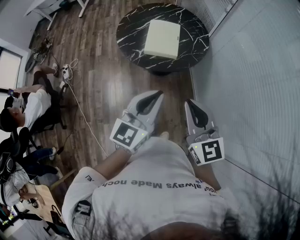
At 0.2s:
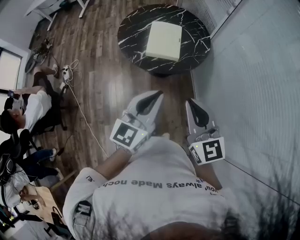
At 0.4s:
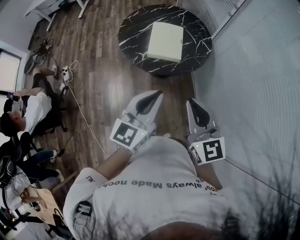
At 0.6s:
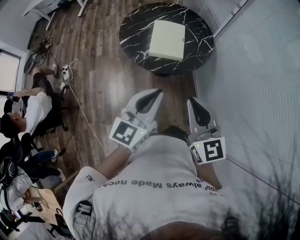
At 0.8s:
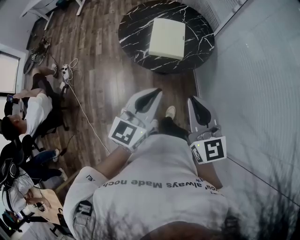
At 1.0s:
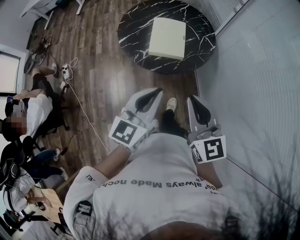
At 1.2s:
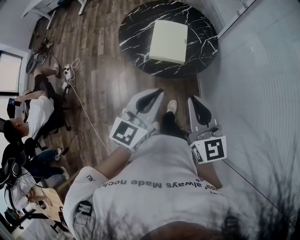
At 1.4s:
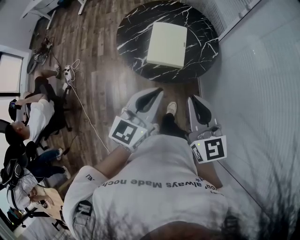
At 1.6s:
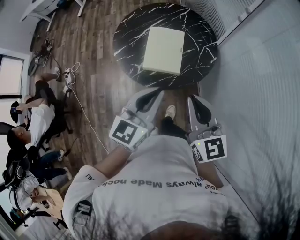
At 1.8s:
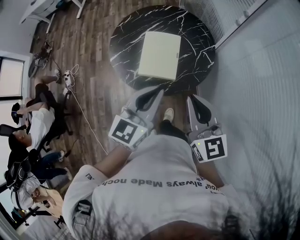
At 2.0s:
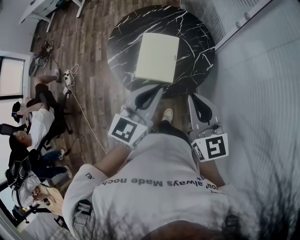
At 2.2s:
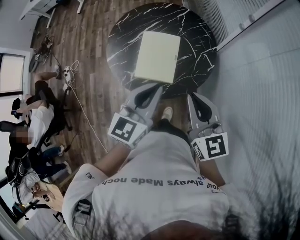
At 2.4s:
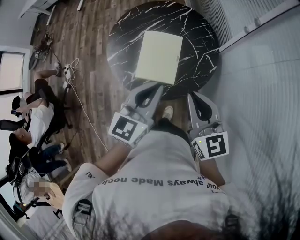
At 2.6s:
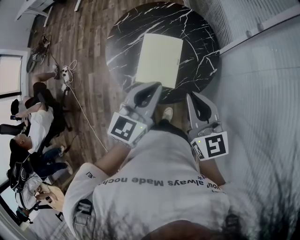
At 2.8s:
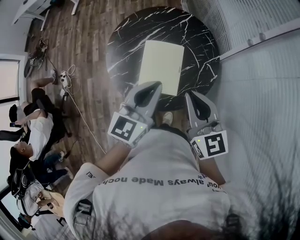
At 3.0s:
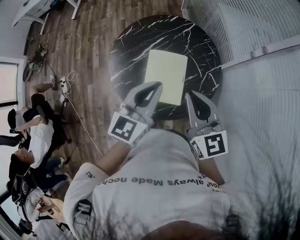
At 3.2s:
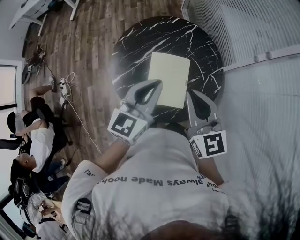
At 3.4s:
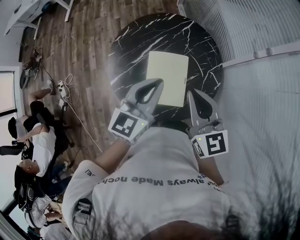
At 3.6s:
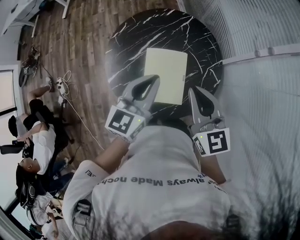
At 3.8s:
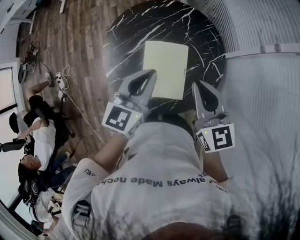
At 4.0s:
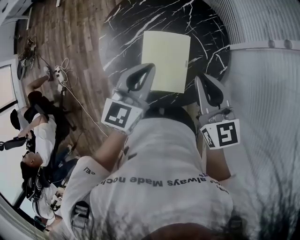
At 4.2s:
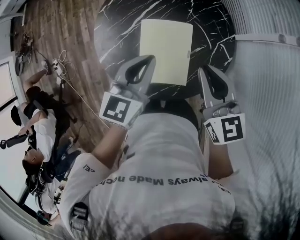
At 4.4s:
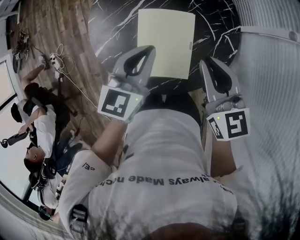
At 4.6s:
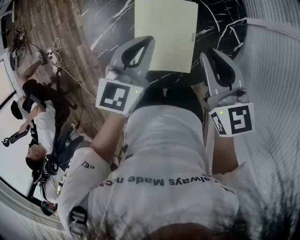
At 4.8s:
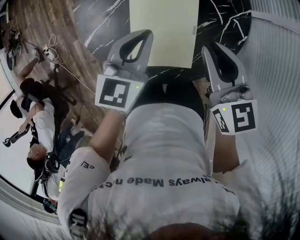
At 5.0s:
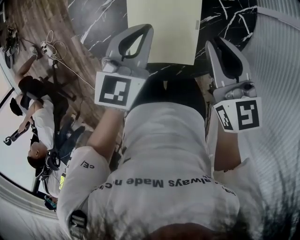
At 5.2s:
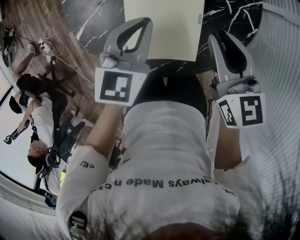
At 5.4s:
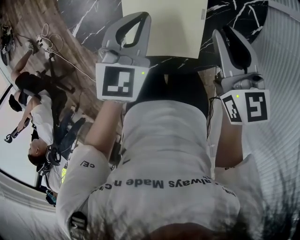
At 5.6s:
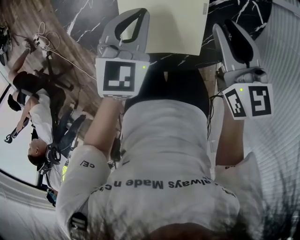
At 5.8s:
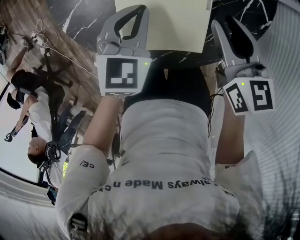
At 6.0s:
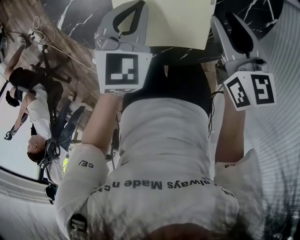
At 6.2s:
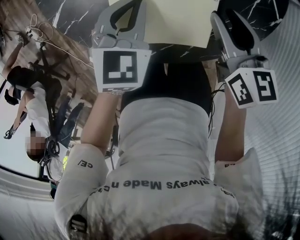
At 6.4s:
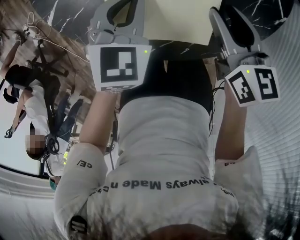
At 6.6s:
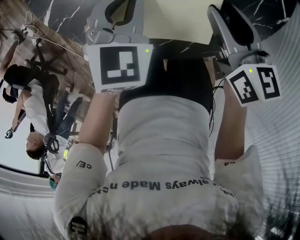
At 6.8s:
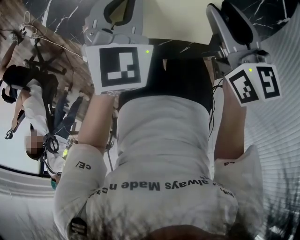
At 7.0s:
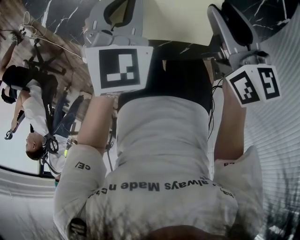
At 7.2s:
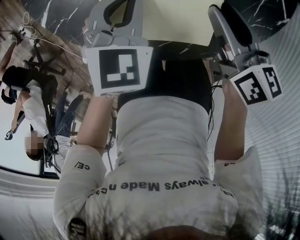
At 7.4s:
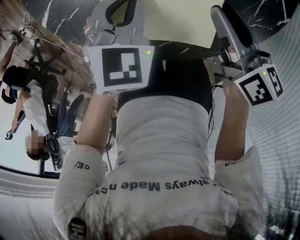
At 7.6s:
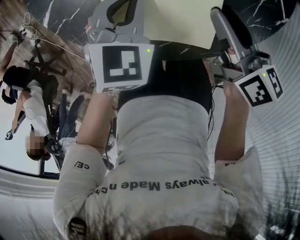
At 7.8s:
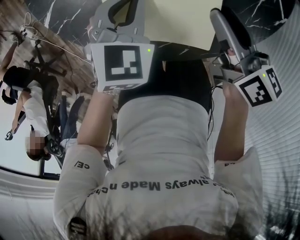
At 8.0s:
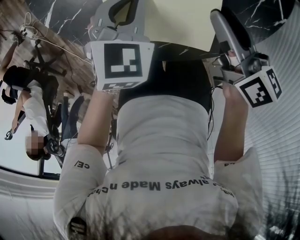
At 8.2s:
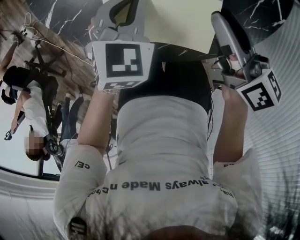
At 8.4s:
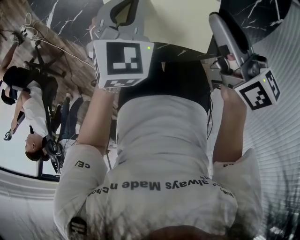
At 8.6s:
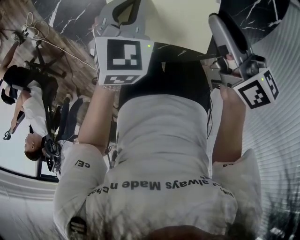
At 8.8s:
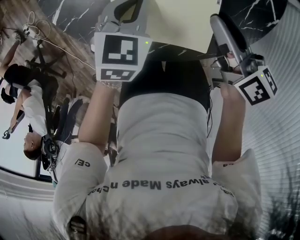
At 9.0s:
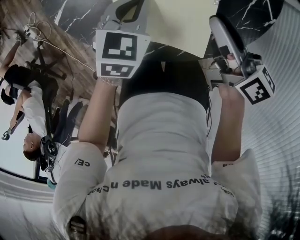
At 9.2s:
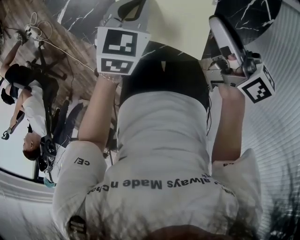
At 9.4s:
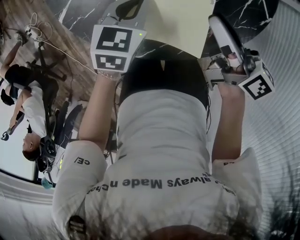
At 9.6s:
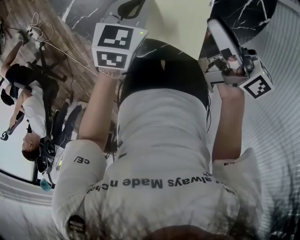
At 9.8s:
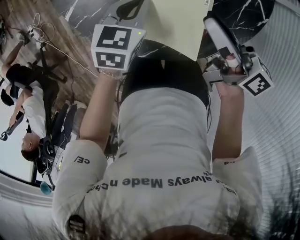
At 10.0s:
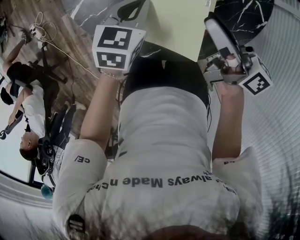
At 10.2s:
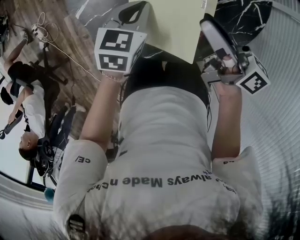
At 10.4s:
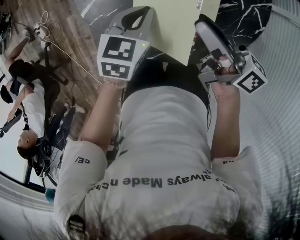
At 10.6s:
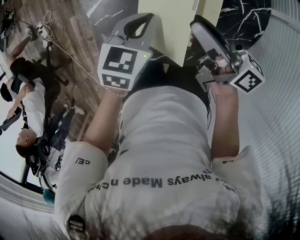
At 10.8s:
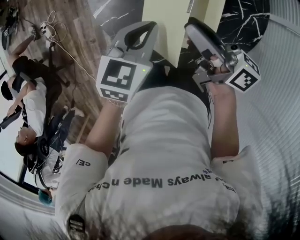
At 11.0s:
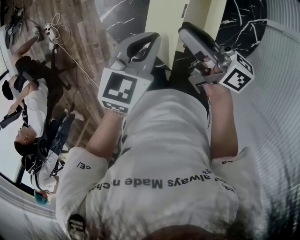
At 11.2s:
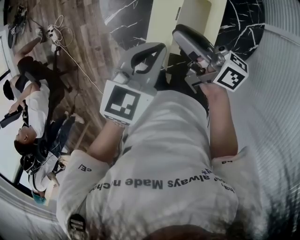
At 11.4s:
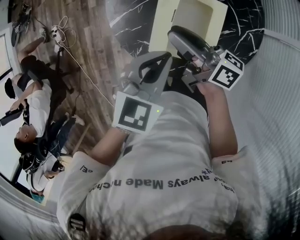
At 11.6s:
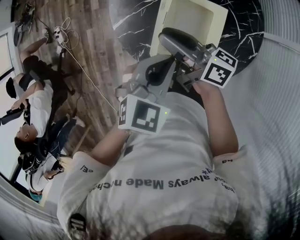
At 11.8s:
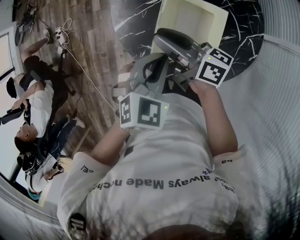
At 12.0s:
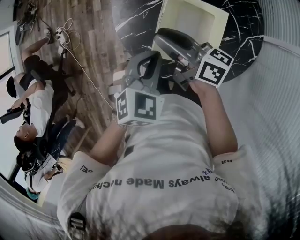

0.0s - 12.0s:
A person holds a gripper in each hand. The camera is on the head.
0.0s - 1.6s: Both grippers move forward, roughly 20 cm.
1.6s - 3.0s: The grippers both shift forward by approximately 25 cm.
3.0s - 4.4s: The grippers both shift downward and forward by about 20 cm.
4.4s - 6.0s: Both grippers move downward, roughly 25 cm. The right gripper opens; the left gripper changes its angle by some 30 degrees.
6.0s - 7.6s: The right gripper turns by about 30 degrees.
7.6s - 9.0s: The grippers move only a little.
9.0s - 10.4s: The left gripper moves upward, roughly 10 cm, while the right gripper moves upward and to the left, about 15 cm, and rotates some 20 degrees.
10.4s - 12.0s: The left gripper travels upward, backward and to the left by roughly 15 cm, and rotates some 20 degrees, while the right gripper moves to the left, roughly 15 cm.

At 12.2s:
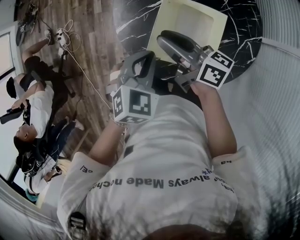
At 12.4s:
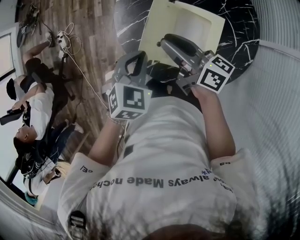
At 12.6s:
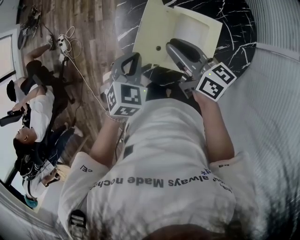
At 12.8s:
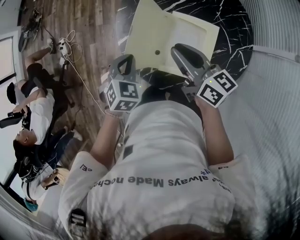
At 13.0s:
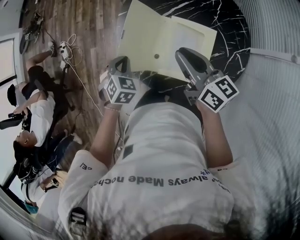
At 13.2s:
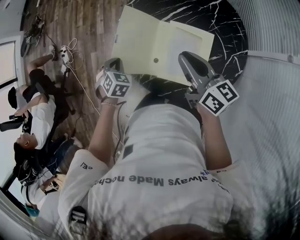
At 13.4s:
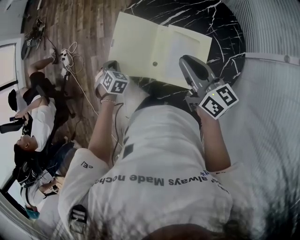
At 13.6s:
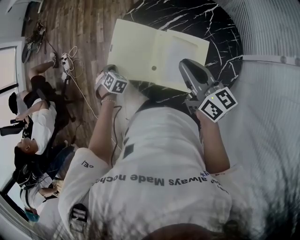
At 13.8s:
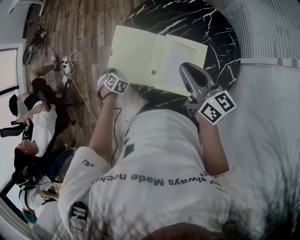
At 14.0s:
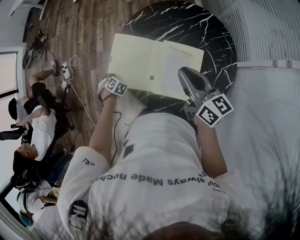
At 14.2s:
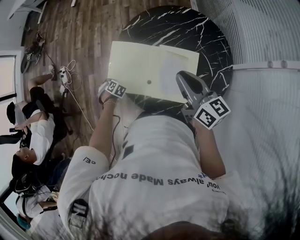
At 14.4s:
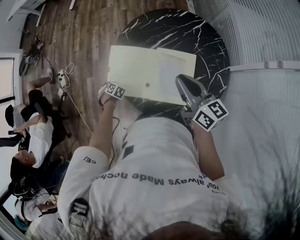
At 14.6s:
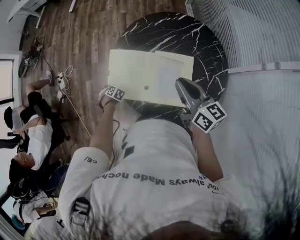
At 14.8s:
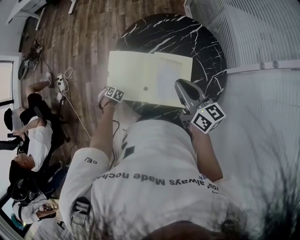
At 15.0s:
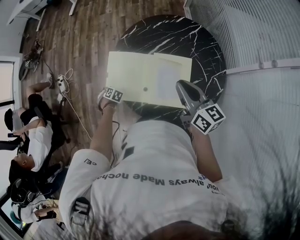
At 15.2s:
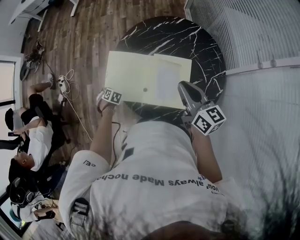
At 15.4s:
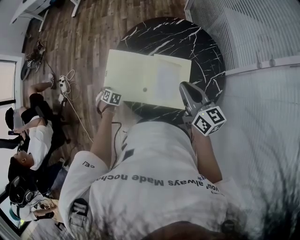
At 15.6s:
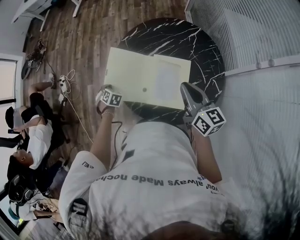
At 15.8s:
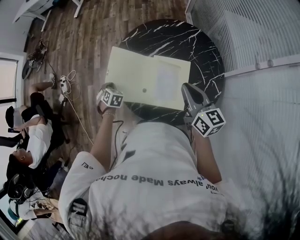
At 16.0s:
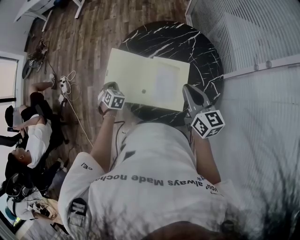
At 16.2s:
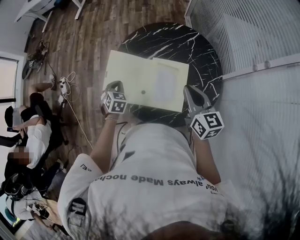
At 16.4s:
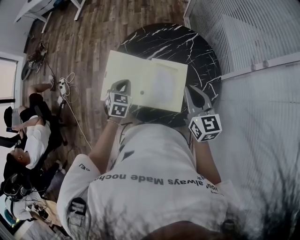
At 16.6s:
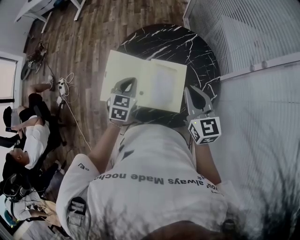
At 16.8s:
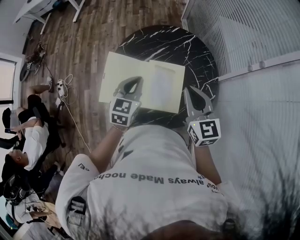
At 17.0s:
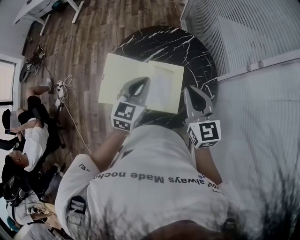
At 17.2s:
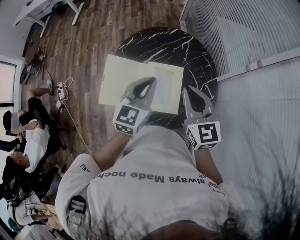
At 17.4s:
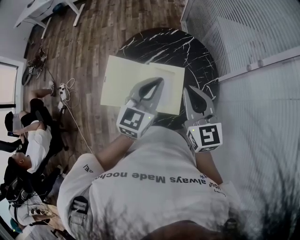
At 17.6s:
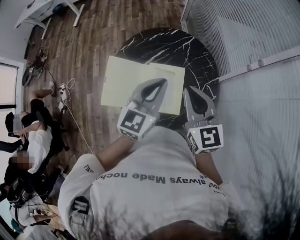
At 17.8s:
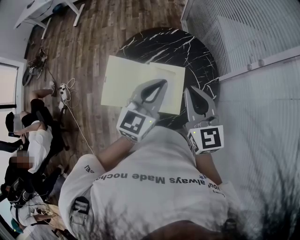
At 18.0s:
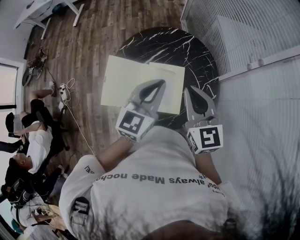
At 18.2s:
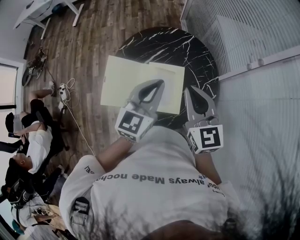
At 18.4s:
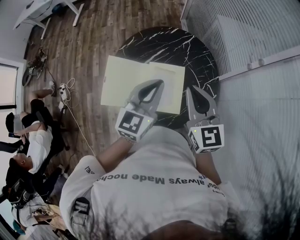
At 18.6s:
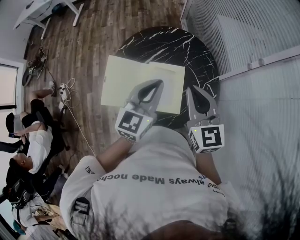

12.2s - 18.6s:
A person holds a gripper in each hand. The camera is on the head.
12.2s - 13.8s: The right gripper moves upward and to the right, approximately 15 cm, and changes its angle by roughly 30 degrees. The left gripper moves downward, to the left and forward, some 30 cm, and turns by about 40 degrees.
13.8s - 15.4s: The right gripper changes place by approximately 5 cm. Meanwhile the left gripper reaches roughly 10 cm downward, then returns.
15.4s - 17.0s: The left gripper moves upward, approximately 35 cm, and tilts its fingers some 50 degrees upward; the right gripper goes roughly 10 cm upward, and rotates about 30 degrees.
17.0s - 18.6s: The left gripper travels upward by approximately 5 cm.

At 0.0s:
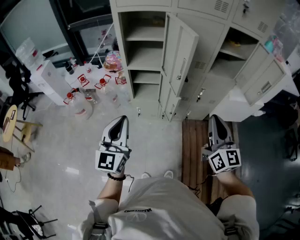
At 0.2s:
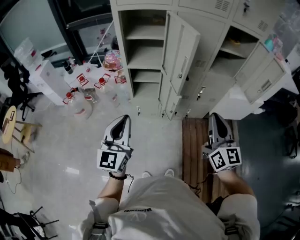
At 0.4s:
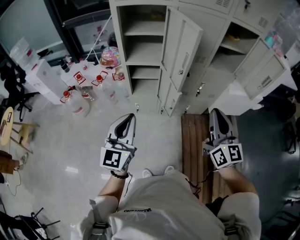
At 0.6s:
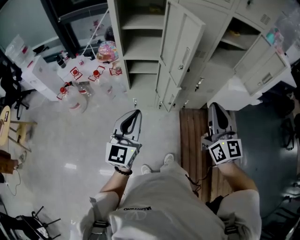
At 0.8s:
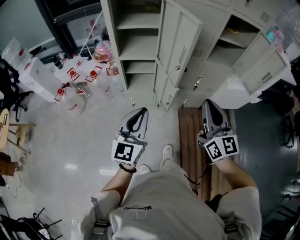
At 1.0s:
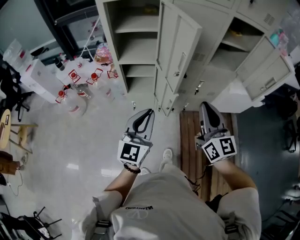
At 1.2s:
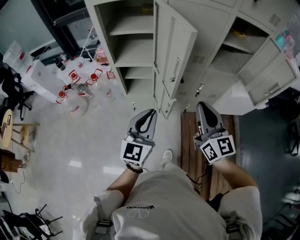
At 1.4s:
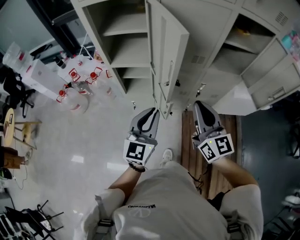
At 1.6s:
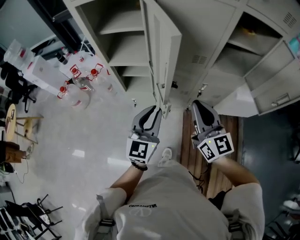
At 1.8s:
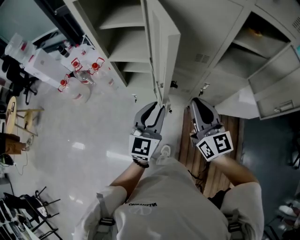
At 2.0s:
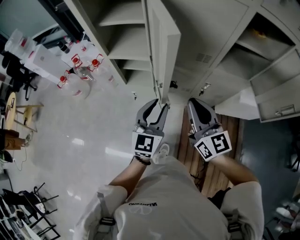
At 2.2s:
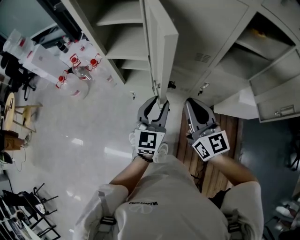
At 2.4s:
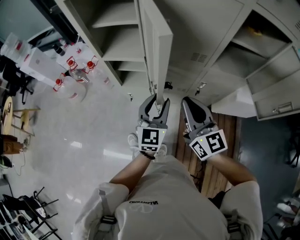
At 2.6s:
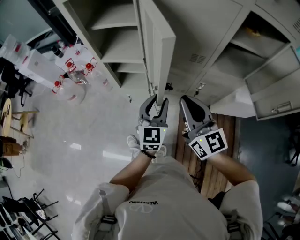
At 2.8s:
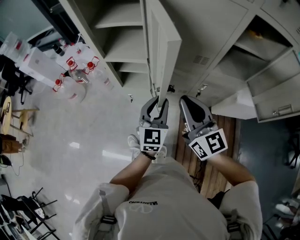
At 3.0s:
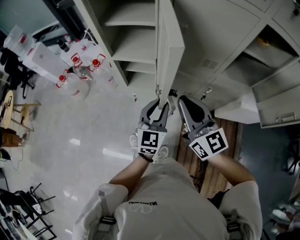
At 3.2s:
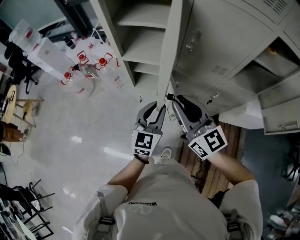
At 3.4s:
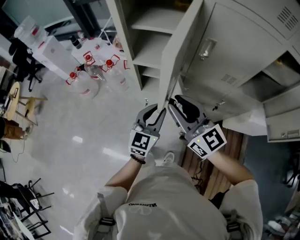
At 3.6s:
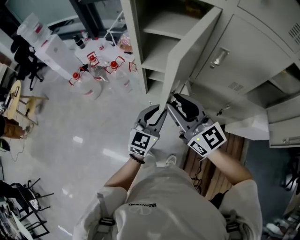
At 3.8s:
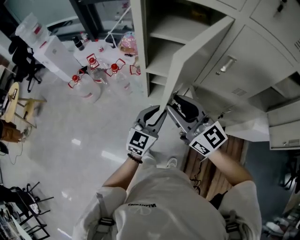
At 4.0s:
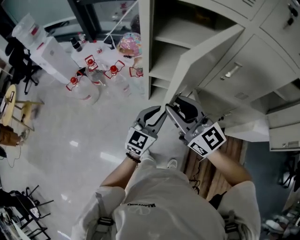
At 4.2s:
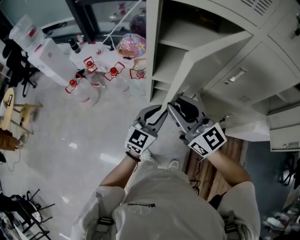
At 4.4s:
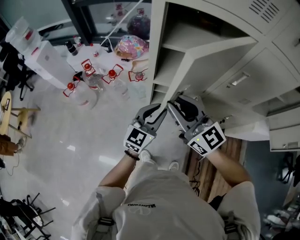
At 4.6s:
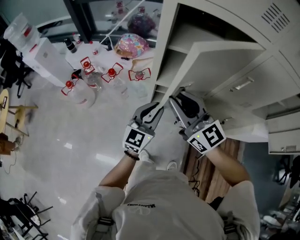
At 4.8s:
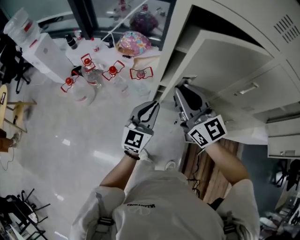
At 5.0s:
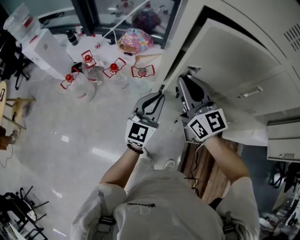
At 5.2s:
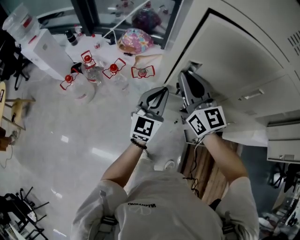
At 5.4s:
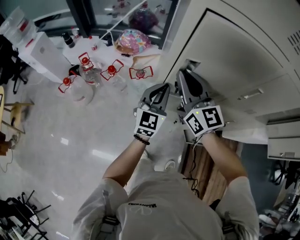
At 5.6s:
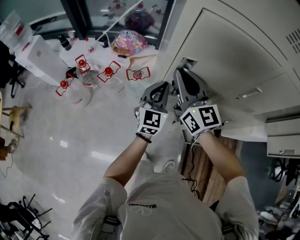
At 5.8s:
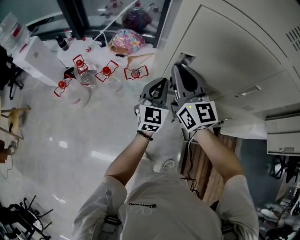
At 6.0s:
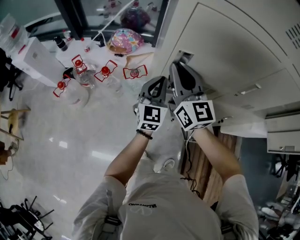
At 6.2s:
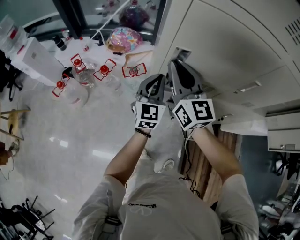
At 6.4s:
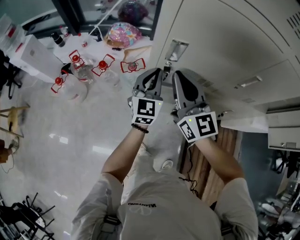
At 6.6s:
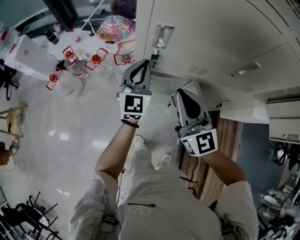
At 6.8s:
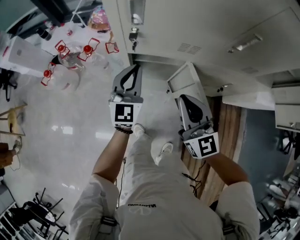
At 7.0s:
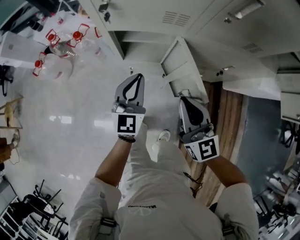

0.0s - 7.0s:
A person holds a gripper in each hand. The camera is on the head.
0.0s - 1.4s: The left gripper moves to the right, forward and downward, some 25 cm; the right gripper goes some 15 cm forward.
1.4s - 2.8s: The right gripper shifts roughly 5 cm forward; the left gripper shifts roughly 15 cm forward, downward and to the right.
2.8s - 4.2s: The two grippers go approximately 30 cm to the left and forward. The right gripper opens its fingers.
4.2s - 5.6s: The two grippers go approximately 15 cm forward. The right gripper rotates approximately 20 degrees.
5.6s - 7.0s: The left gripper travels backward, downward and to the right by some 20 cm; the right gripper is displaced backward, downward and to the right by roughly 35 cm.
